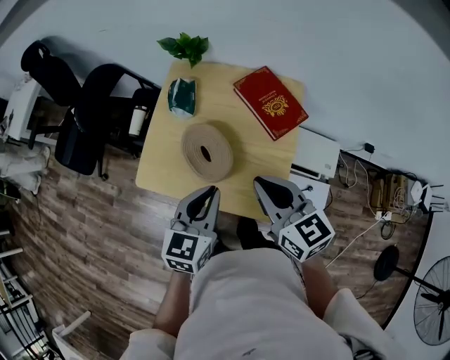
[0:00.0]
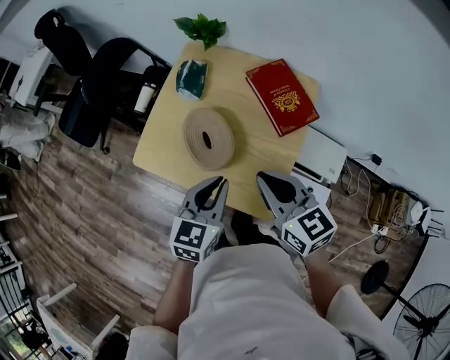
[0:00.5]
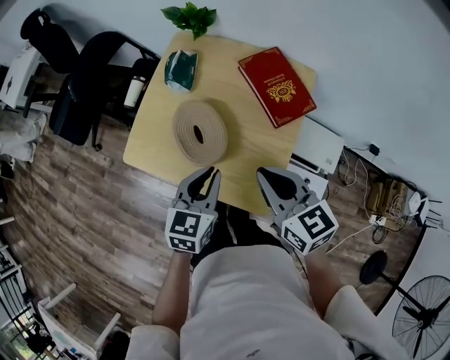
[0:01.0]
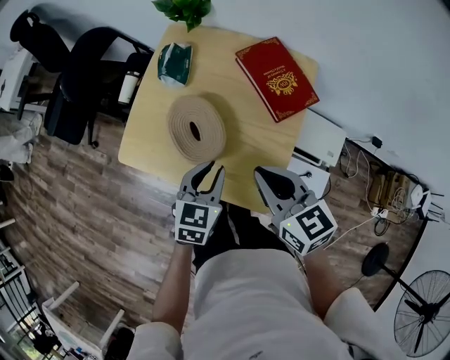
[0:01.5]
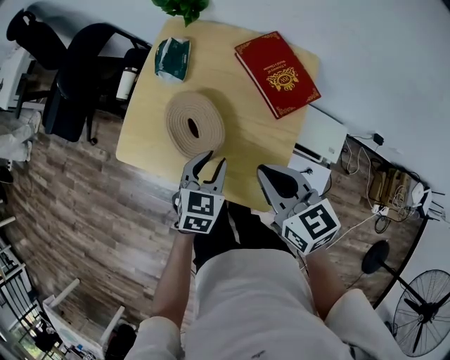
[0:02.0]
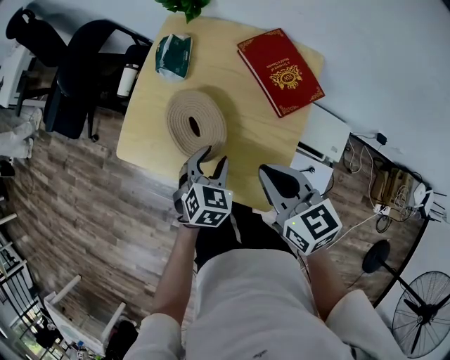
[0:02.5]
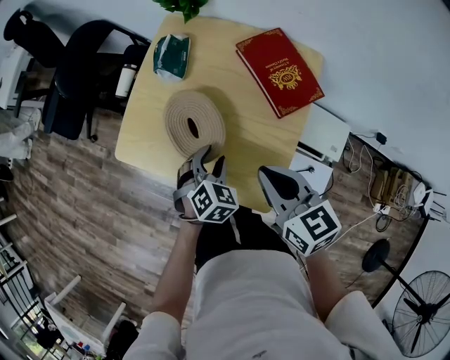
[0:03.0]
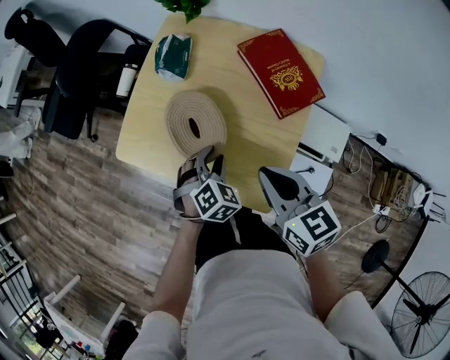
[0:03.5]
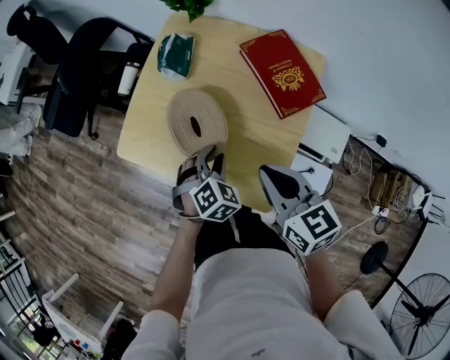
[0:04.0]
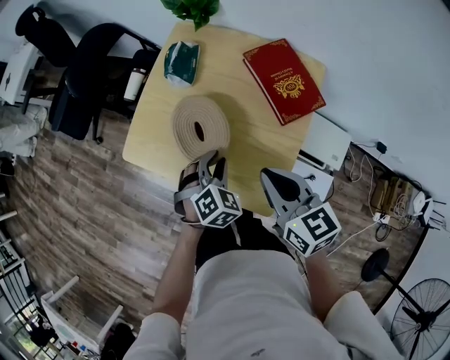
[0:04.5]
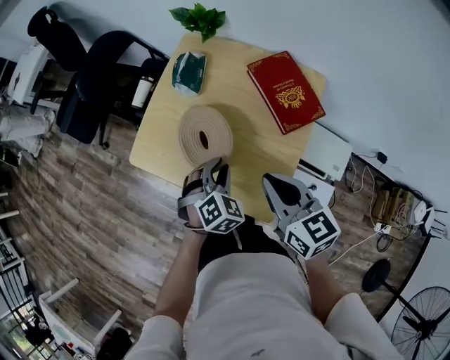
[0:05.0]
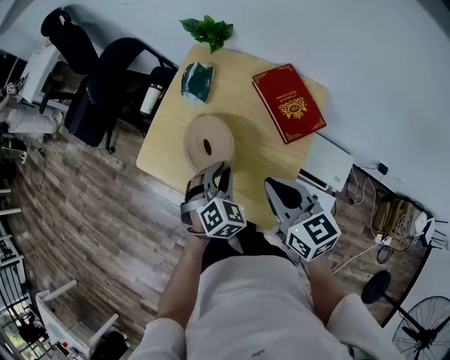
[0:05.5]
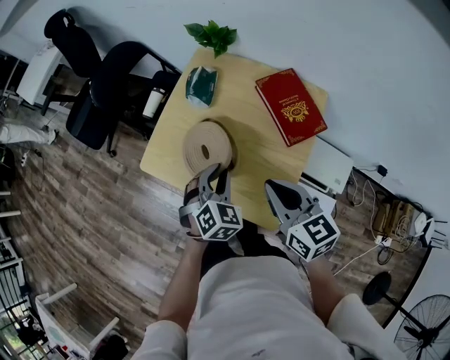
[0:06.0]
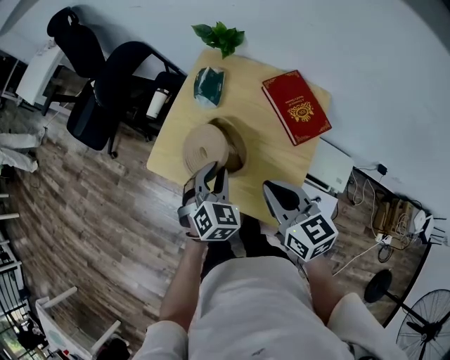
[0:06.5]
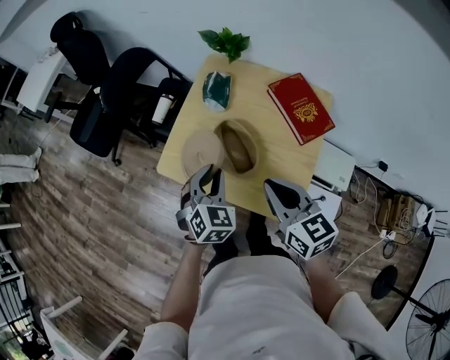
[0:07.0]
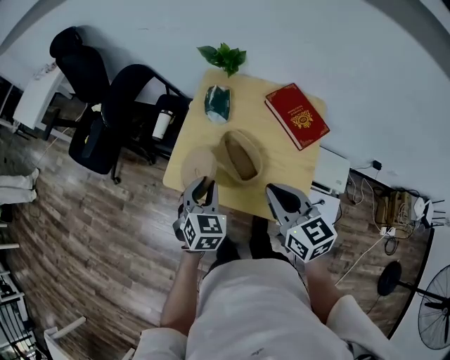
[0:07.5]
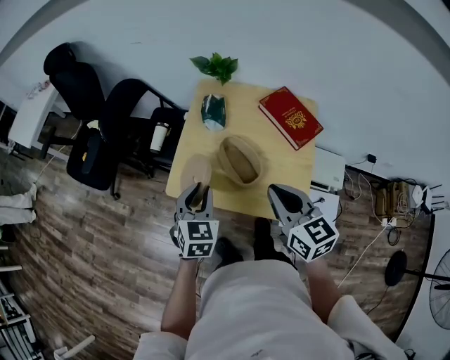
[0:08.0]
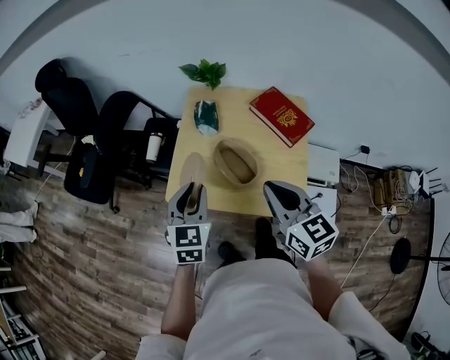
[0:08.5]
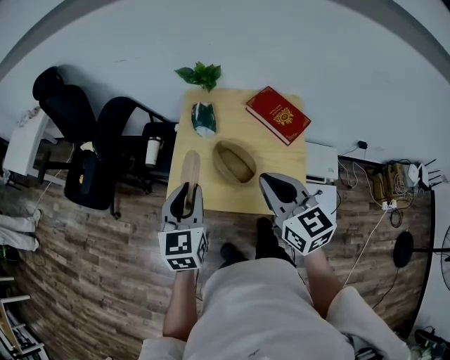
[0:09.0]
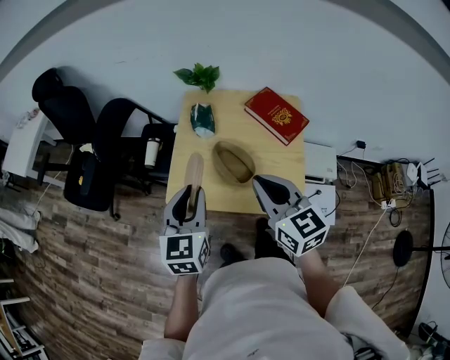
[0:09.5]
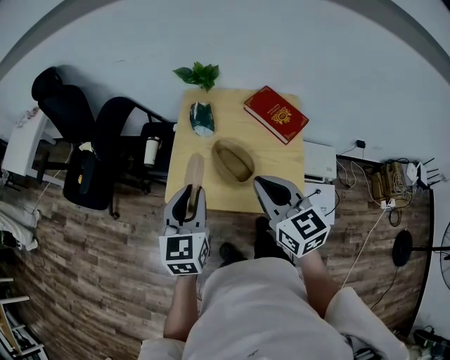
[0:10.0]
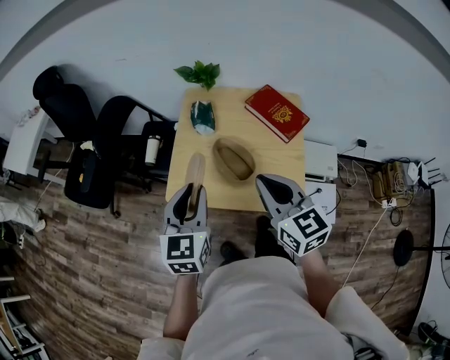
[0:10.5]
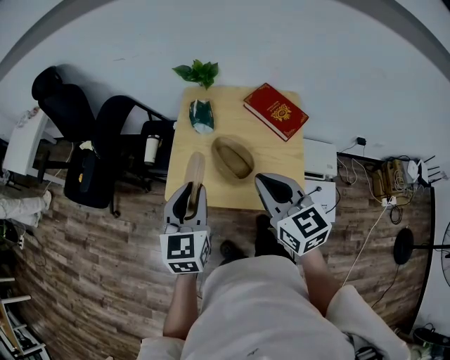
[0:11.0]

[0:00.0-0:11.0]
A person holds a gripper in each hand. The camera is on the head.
0:00.0 to 0:02.0: The right gripper goes roughly 10 cm downward. Meanwhile the left gripper moves downward, some 15 cm, and opens up.
0:02.0 to 0:03.5: The left gripper is displaced downward by approximately 5 cm, and rotates some 30 degrees.
0:03.5 to 0:05.5: The left gripper is displaced upward by about 10 cm.
0:05.5 to 0:07.5: The grippers both shift to the left and upward by roughly 15 cm.
0:07.5 to 0:09.0: The right gripper is displaced upward by approximately 5 cm; the left gripper goes about 10 cm upward, and turns by roughly 30 degrees.
0:09.0 to 0:11.0: The grippers make only small movements.

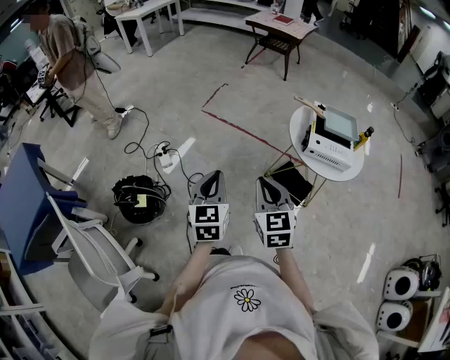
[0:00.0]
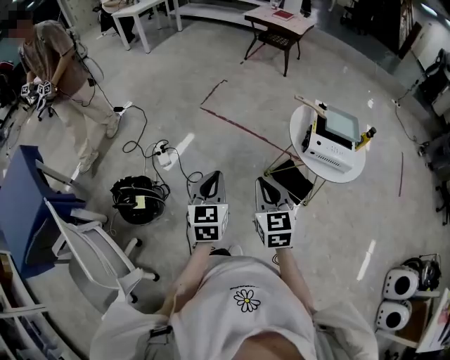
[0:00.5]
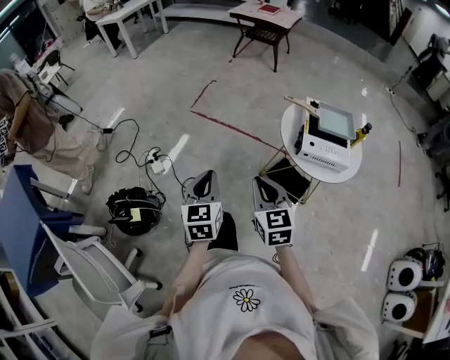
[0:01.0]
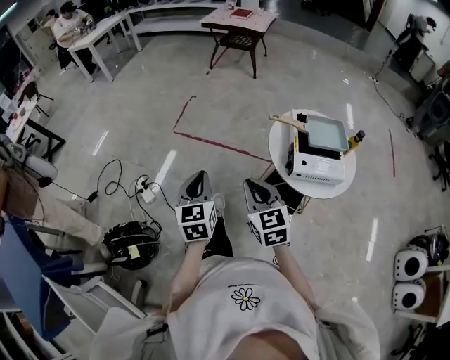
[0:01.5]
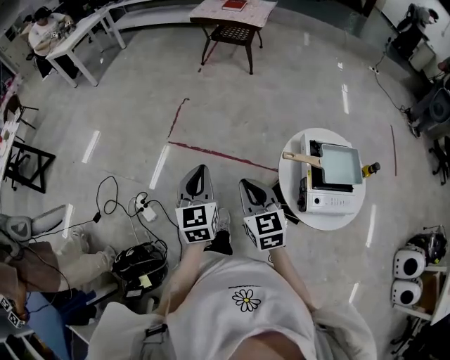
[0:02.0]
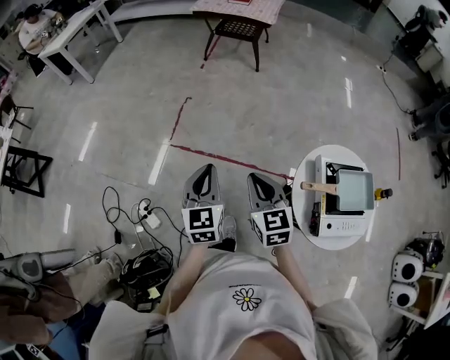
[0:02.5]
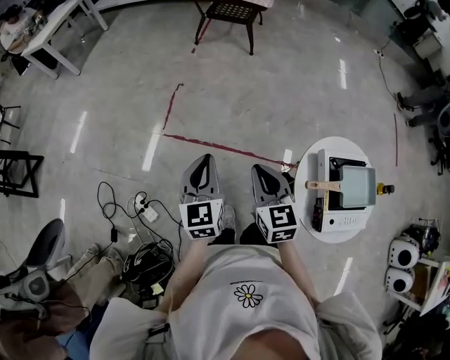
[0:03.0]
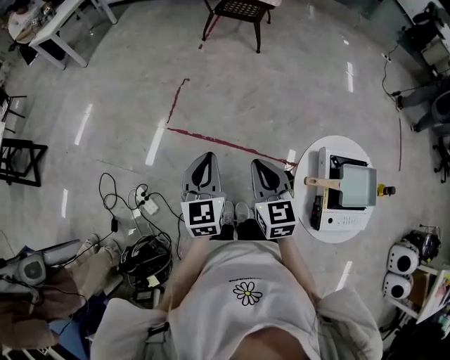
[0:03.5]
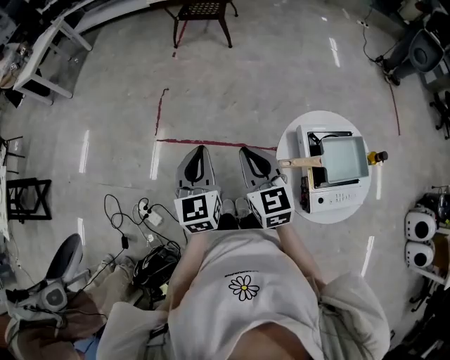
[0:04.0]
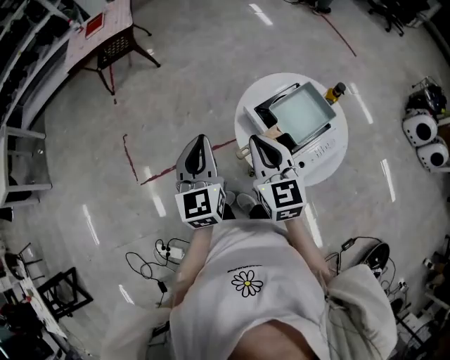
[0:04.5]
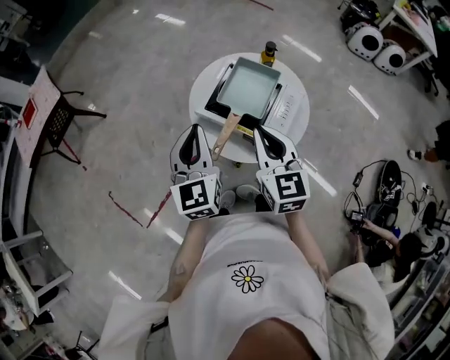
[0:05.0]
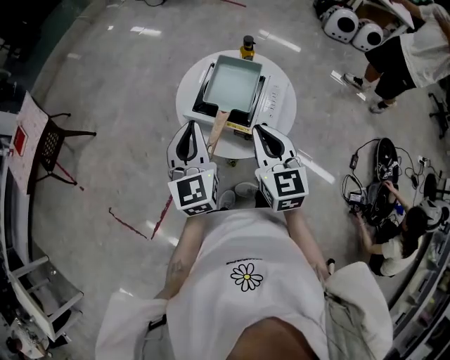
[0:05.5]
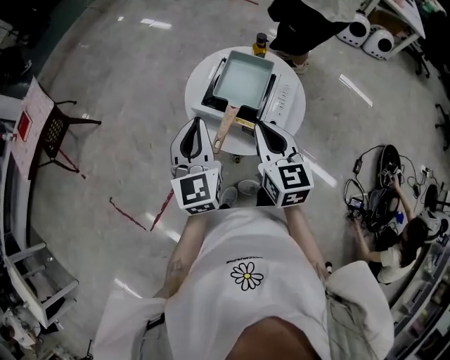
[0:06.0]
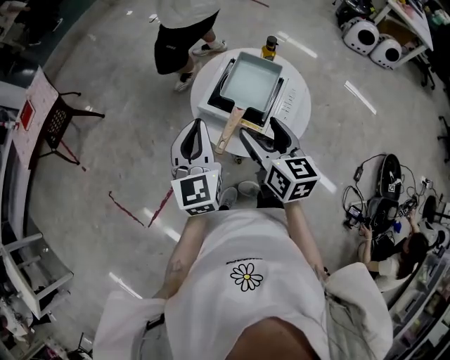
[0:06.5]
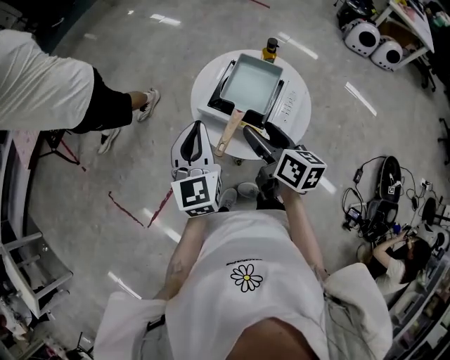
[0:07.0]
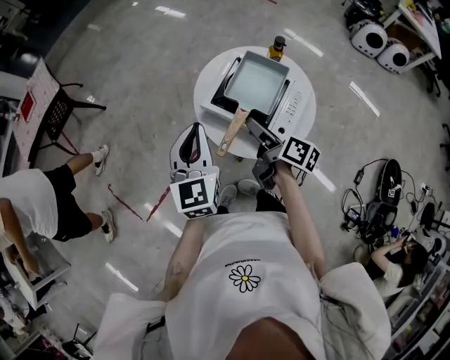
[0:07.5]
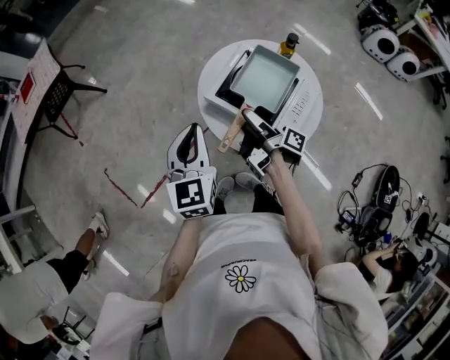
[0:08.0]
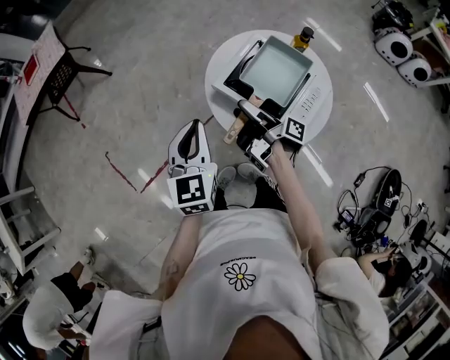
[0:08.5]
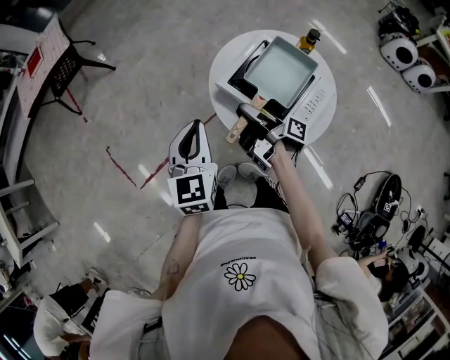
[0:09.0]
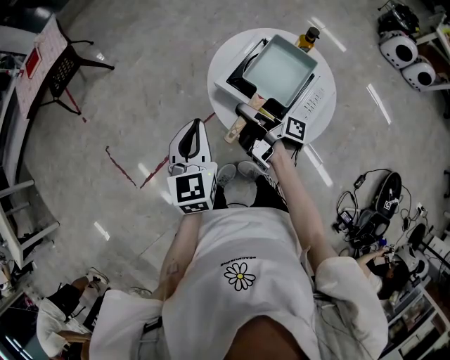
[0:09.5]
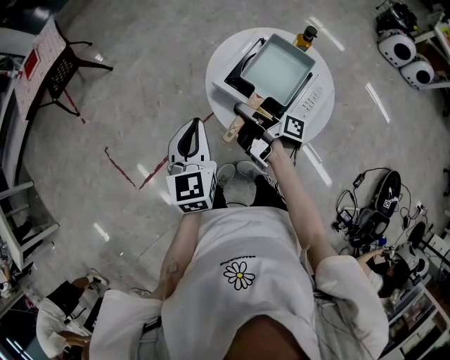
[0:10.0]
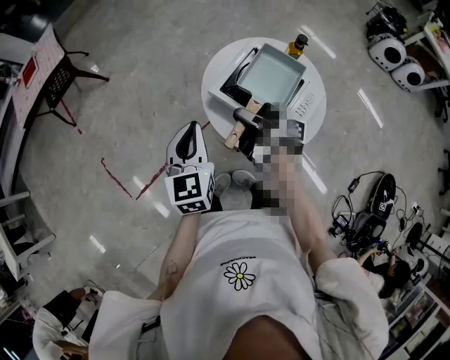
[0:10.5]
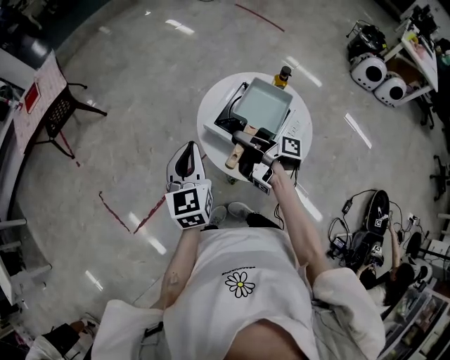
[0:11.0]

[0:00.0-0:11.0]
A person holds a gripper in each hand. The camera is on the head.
0:00.0 to 0:02.0: The pair of grippers is taken forward, about 40 cm.
0:02.0 to 0:03.5: The two grippers go roughly 15 cm forward.
0:03.5 to 0:05.5: The left gripper changes place by some 35 cm, and changes its angle by roughly 70 degrees. The right gripper ends up some 35 cm from where it was, and changes its angle by some 70 degrees.
0:05.5 to 0:07.5: The right gripper goes approximately 10 cm downward and forward, rotates around the line of its fingers by about 60 degrees, clockwise from behind, and opens up.
0:07.5 to 0:09.0: The right gripper goes some 10 cm to the left, rotates approximately 40 degrees, and closes up; the left gripper moves approximately 5 cm.
0:09.0 to 0:11.0: The right gripper shifts roughly 5 cm upward.

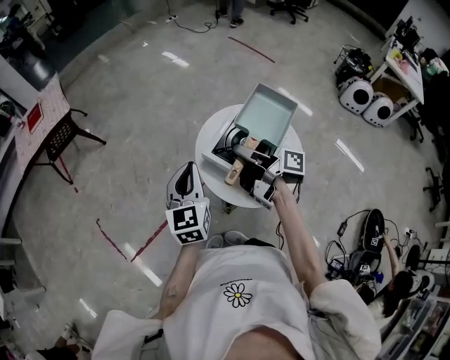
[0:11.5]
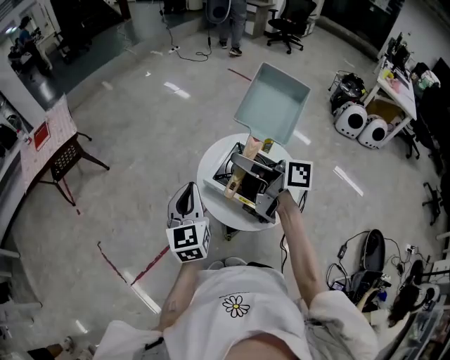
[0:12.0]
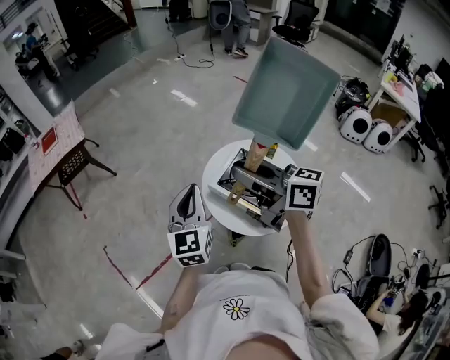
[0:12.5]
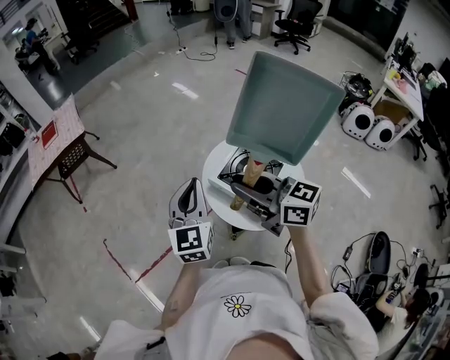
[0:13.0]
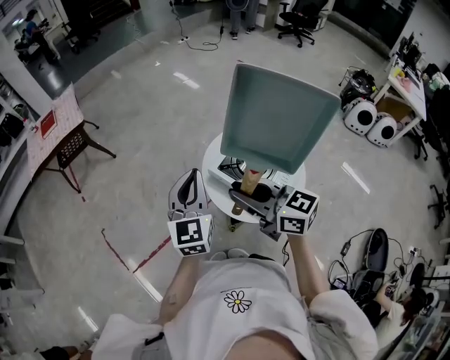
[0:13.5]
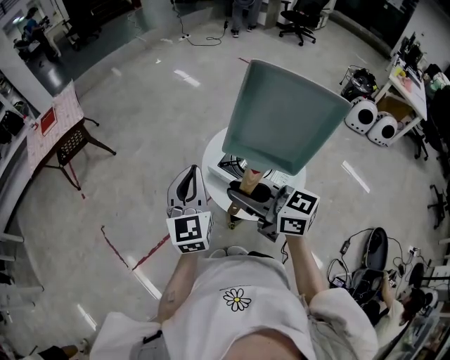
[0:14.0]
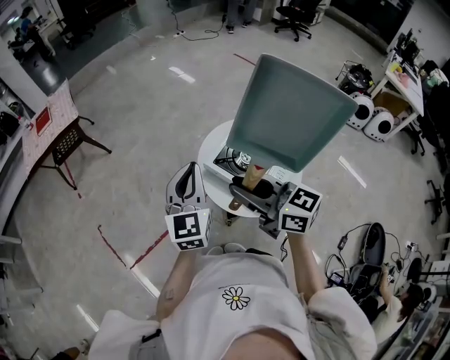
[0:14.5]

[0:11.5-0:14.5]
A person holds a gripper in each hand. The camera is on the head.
0:11.5 to 0:13.0: The left gripper is displaced upward by some 5 cm; the right gripper moves upward, backward and to the left, roughly 15 cm, and rolls counterclockwise, seen from behind, by about 70 degrees.
0:13.0 to 0:14.5: The grippers move only a little.

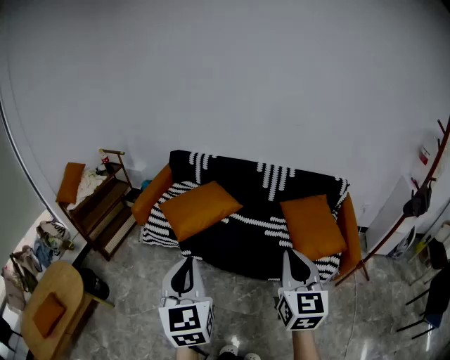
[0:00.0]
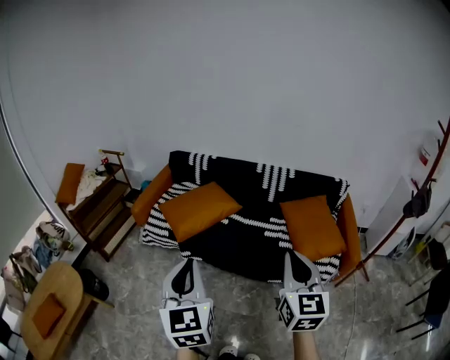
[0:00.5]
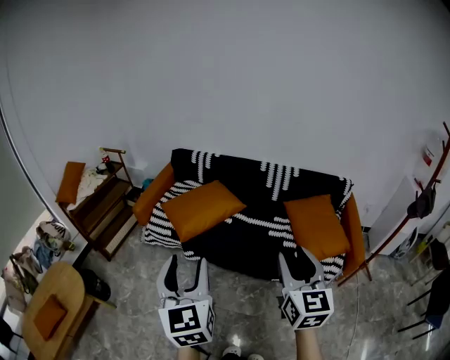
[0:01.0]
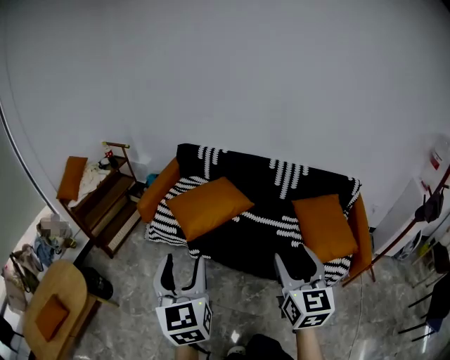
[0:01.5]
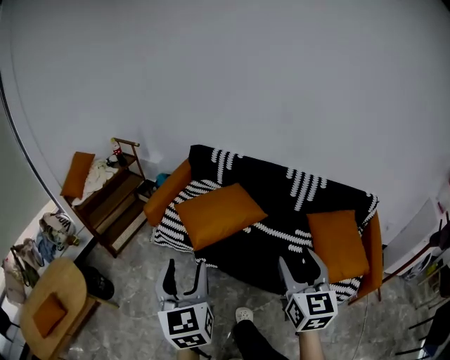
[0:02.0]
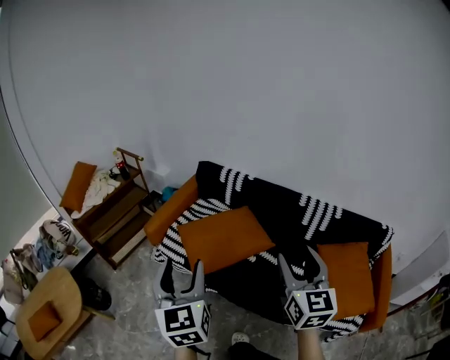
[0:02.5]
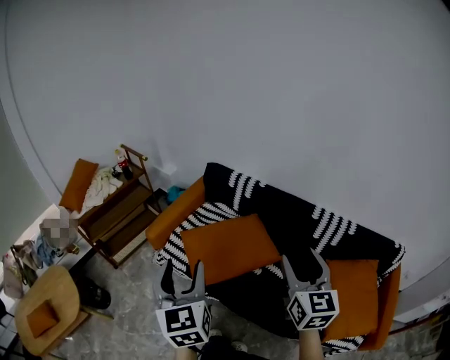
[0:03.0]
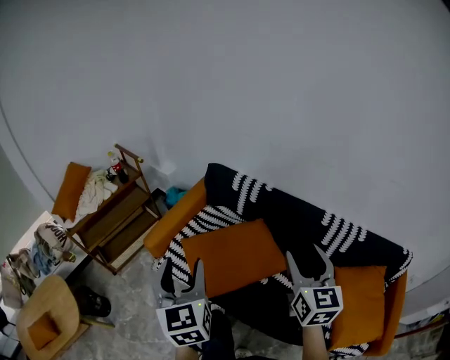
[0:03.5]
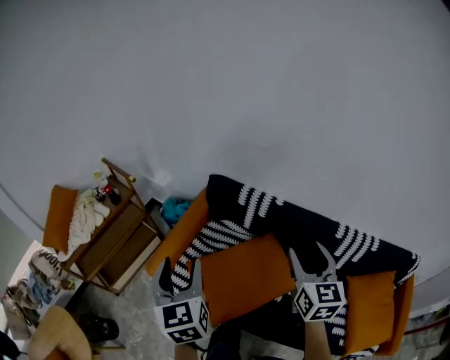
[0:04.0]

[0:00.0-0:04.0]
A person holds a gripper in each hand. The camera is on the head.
0:00.0 to 0:02.0: Both grippers travel together forward and to the left, approximately 20 cm. The right gripper opens up; the left gripper opens up.
0:02.0 to 0:04.0: The pair of grippers is taken forward, approximately 60 cm.
